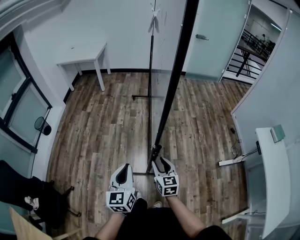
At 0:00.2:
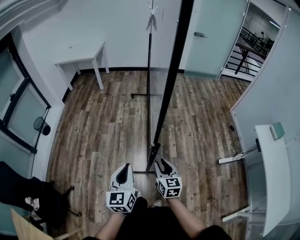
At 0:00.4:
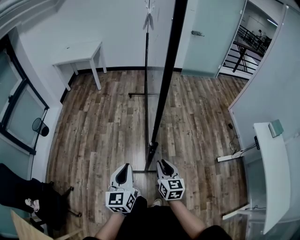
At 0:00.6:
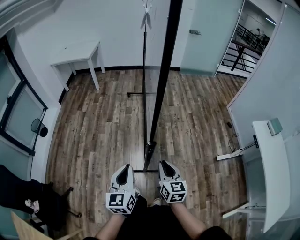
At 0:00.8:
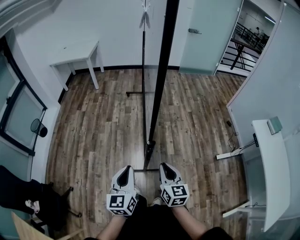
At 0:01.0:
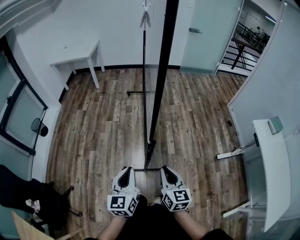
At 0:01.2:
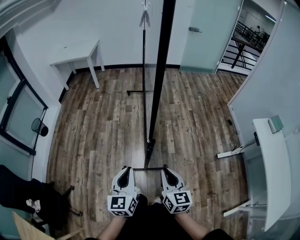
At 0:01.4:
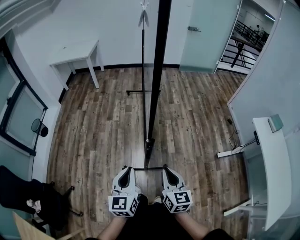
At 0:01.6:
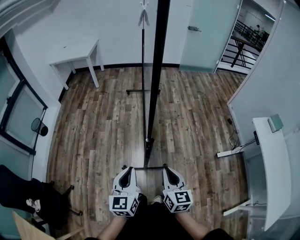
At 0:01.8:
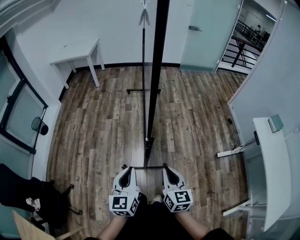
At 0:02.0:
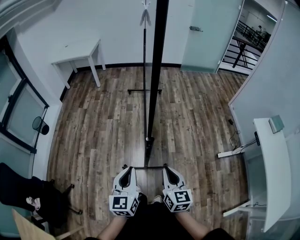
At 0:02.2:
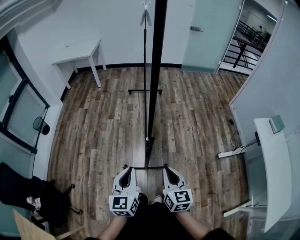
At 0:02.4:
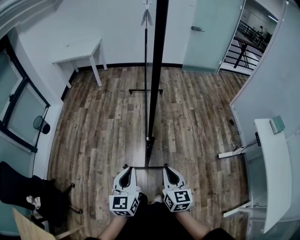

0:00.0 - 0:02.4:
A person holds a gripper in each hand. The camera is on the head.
0:00.0 - 0:01.2: The right gripper travels backward and upward by approximately 10 cm, and closes its fingers.
0:01.2 - 0:02.4: The grippers stay close to where they were, moving slightly.

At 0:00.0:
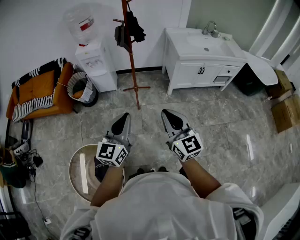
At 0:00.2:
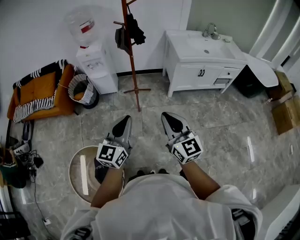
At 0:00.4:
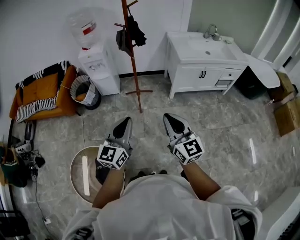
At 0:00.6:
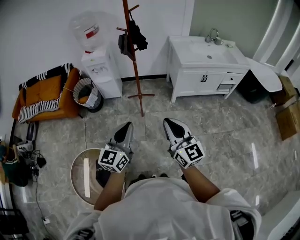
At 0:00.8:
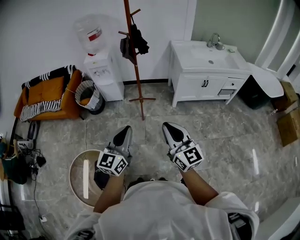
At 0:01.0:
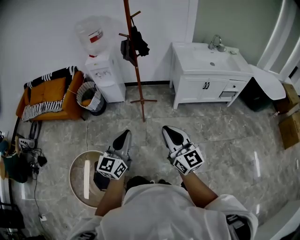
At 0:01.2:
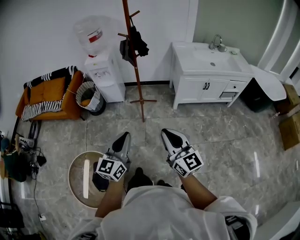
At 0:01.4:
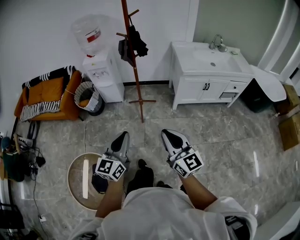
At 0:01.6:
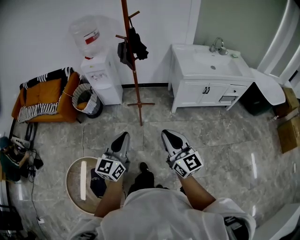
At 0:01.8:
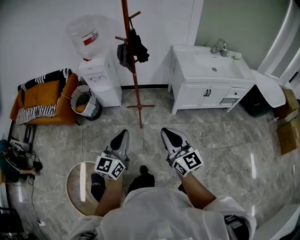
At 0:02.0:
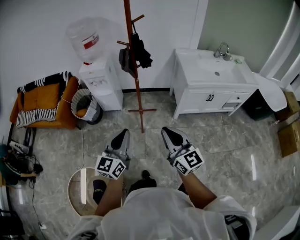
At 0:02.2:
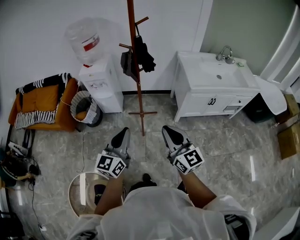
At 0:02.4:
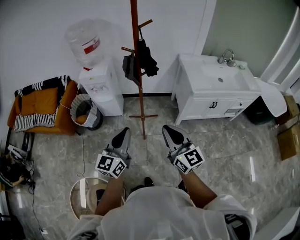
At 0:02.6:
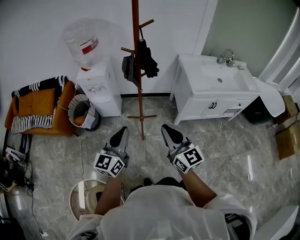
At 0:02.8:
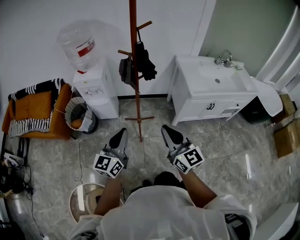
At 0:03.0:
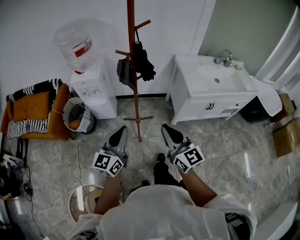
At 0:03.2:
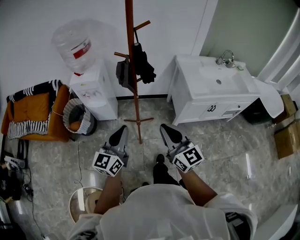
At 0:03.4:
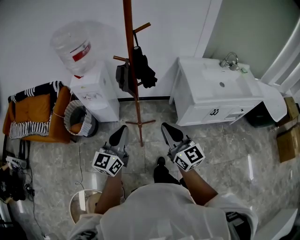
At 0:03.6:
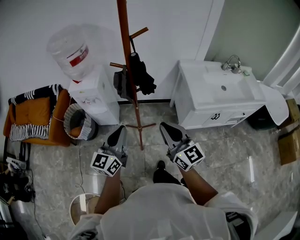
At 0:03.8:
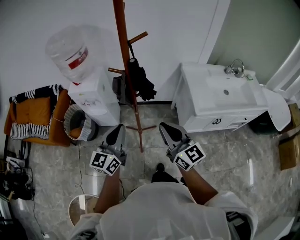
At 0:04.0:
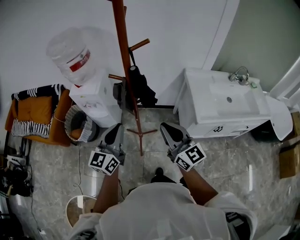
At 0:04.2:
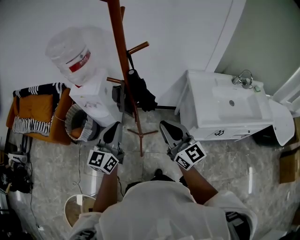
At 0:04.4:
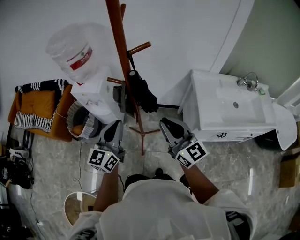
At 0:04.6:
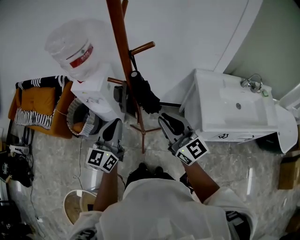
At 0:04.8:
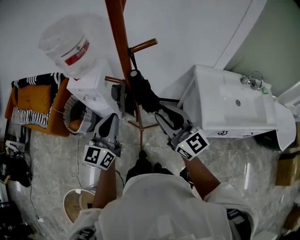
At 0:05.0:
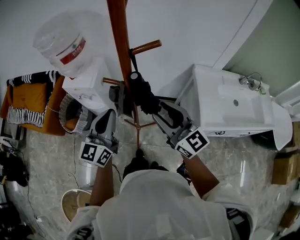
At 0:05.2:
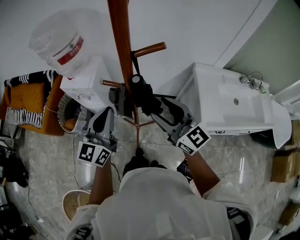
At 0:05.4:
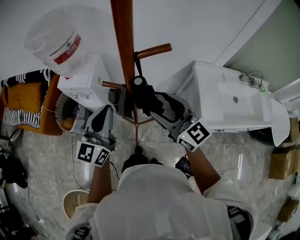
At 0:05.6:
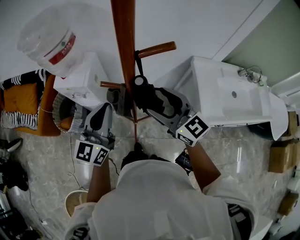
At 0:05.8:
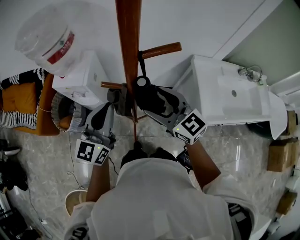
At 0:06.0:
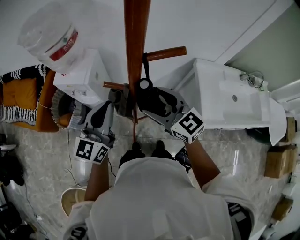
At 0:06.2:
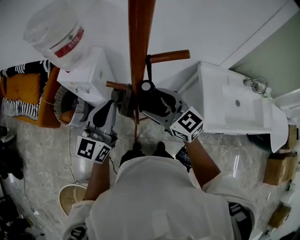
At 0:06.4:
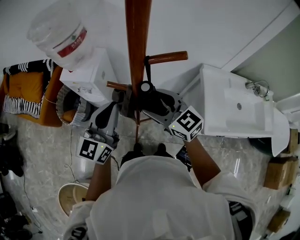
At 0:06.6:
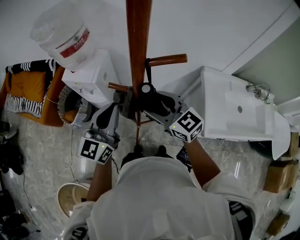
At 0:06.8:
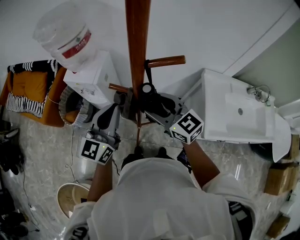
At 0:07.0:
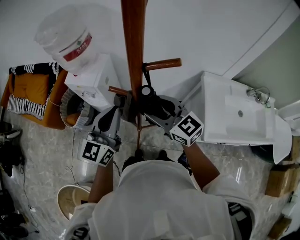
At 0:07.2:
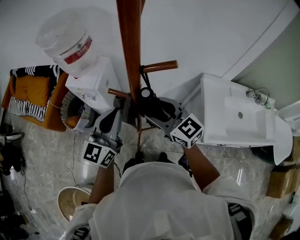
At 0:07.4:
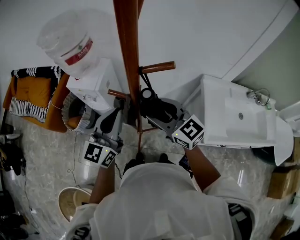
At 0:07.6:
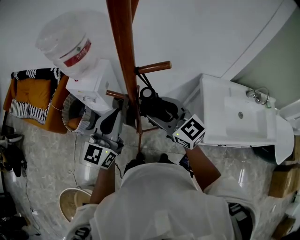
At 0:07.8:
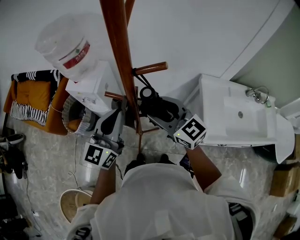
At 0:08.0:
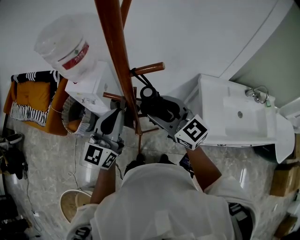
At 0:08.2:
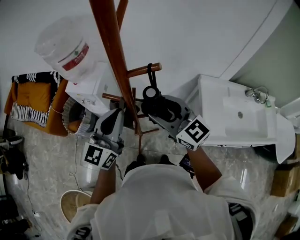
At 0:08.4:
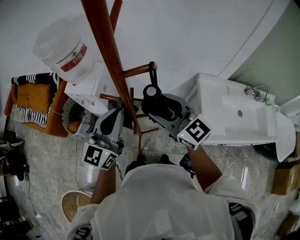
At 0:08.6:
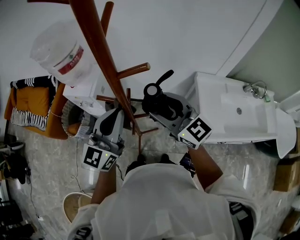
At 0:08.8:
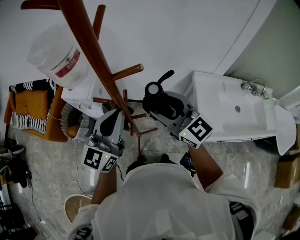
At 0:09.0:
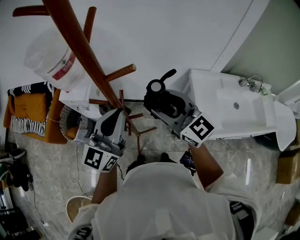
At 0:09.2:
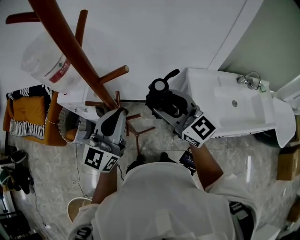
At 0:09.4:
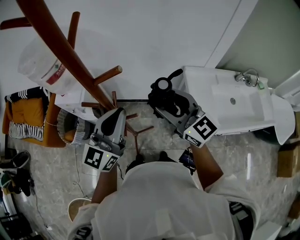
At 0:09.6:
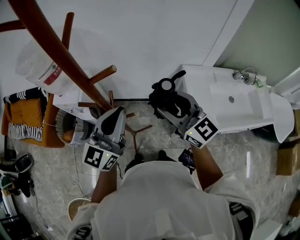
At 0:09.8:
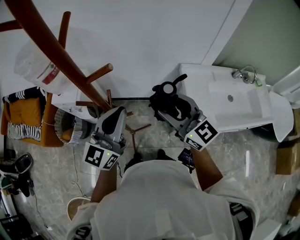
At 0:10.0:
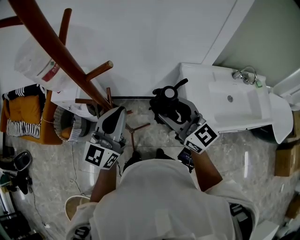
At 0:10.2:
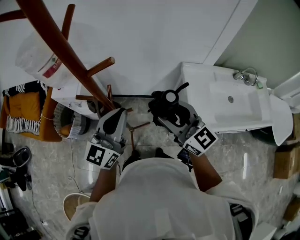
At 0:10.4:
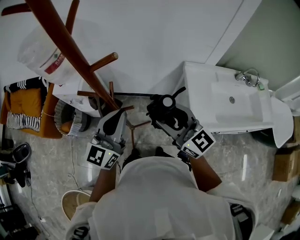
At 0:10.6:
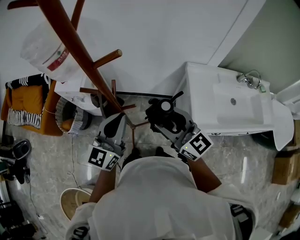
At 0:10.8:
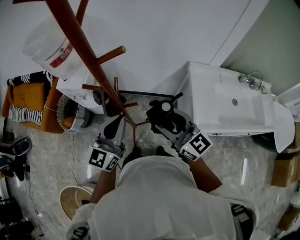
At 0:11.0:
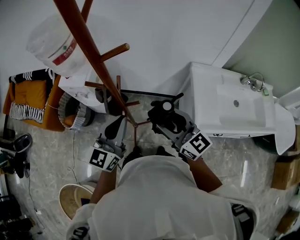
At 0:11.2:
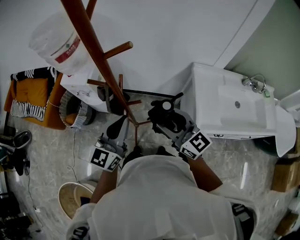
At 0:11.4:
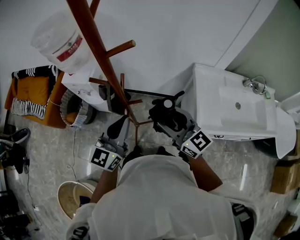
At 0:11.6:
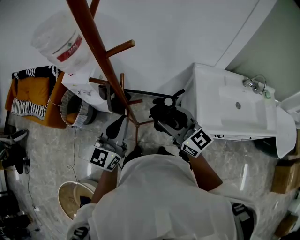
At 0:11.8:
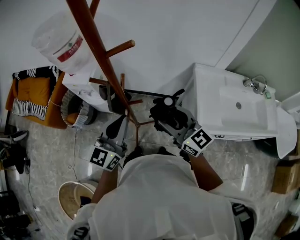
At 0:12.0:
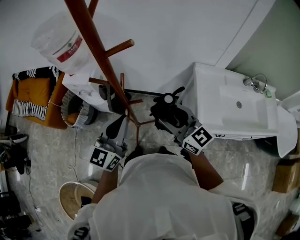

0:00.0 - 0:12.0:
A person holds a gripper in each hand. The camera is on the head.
0:00.0 - 0:01.6: The right gripper is displaced to the right by approximately 5 cm, while the left gripper moves roughly 5 cm.
0:01.6 - 0:03.0: Both grippers move forward, roughly 30 cm.
0:03.0 - 0:04.4: Both grippers move forward, about 25 cm.
0:04.4 - 0:06.0: The grippers both shift forward by about 15 cm. The right gripper turns by approximately 20 degrees, and opens up.
0:06.0 - 0:07.6: The left gripper ends up approximately 5 cm from where it was.
0:07.6 - 0:09.0: The right gripper moves to the right and upward, approximately 10 cm. Meanwhile the left gripper heads to the right, covering approximately 10 cm.
0:09.0 - 0:10.4: The left gripper heads downward, covering approximately 5 cm; the right gripper goes approximately 5 cm backward.
0:10.4 - 0:12.0: The left gripper shifts by approximately 5 cm.

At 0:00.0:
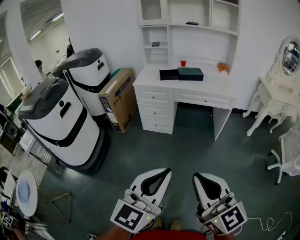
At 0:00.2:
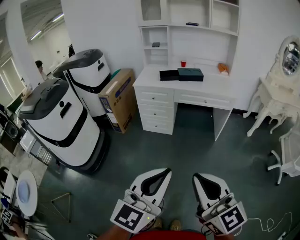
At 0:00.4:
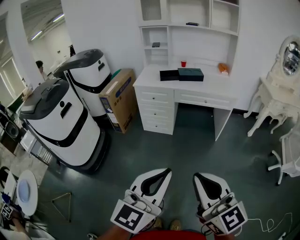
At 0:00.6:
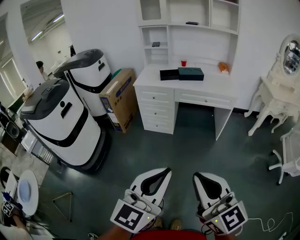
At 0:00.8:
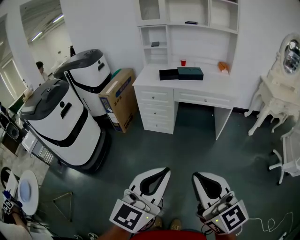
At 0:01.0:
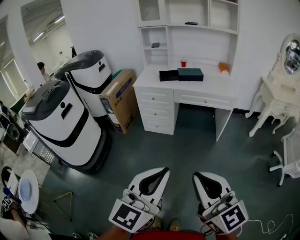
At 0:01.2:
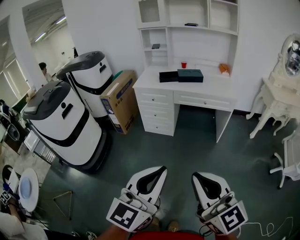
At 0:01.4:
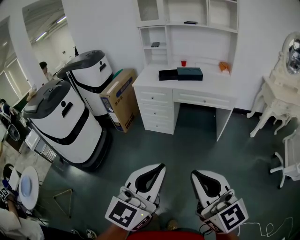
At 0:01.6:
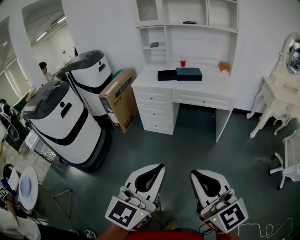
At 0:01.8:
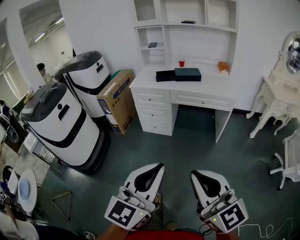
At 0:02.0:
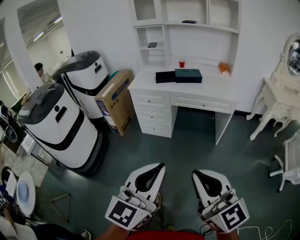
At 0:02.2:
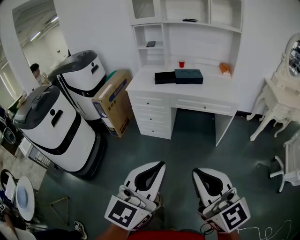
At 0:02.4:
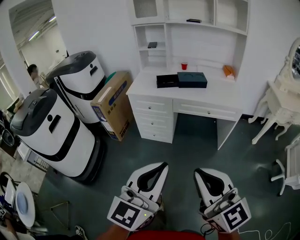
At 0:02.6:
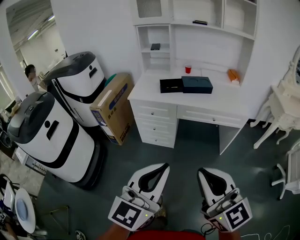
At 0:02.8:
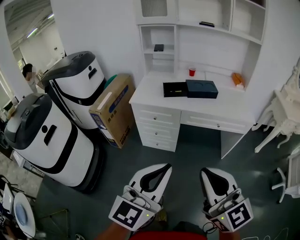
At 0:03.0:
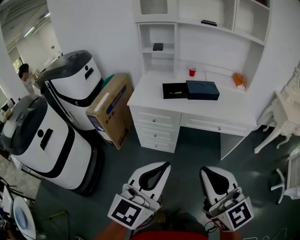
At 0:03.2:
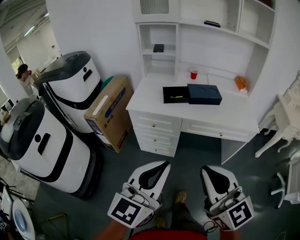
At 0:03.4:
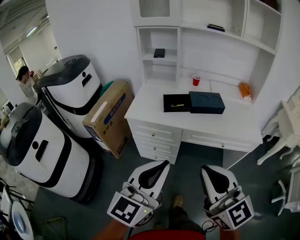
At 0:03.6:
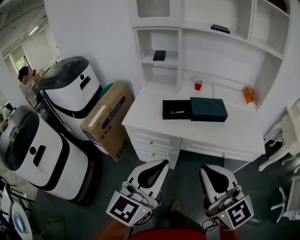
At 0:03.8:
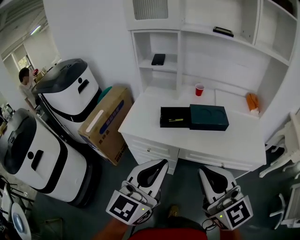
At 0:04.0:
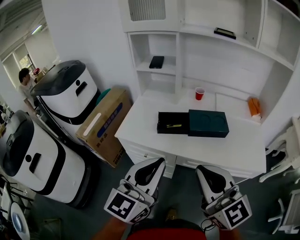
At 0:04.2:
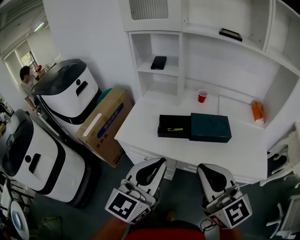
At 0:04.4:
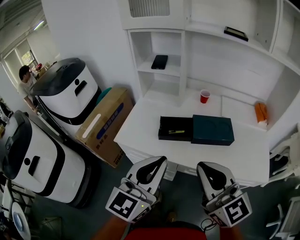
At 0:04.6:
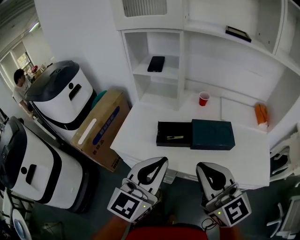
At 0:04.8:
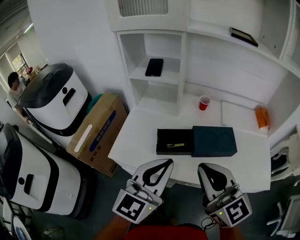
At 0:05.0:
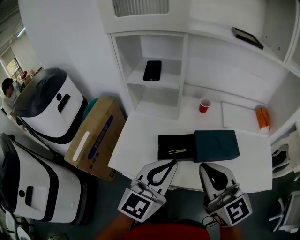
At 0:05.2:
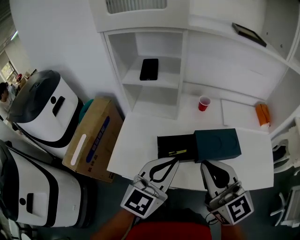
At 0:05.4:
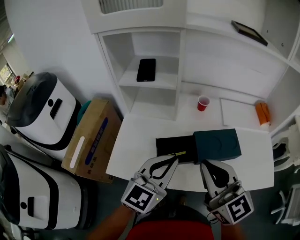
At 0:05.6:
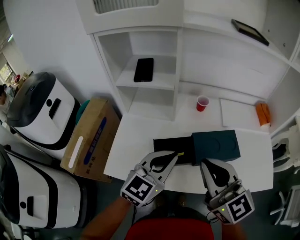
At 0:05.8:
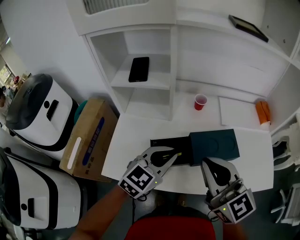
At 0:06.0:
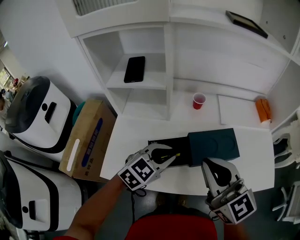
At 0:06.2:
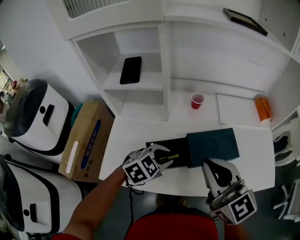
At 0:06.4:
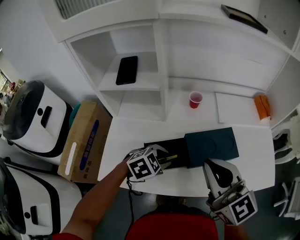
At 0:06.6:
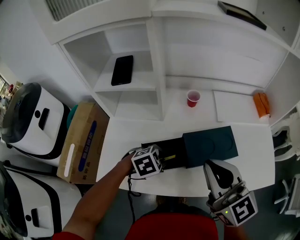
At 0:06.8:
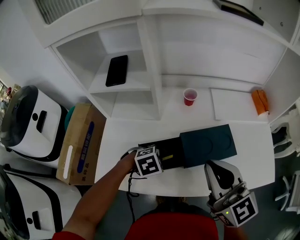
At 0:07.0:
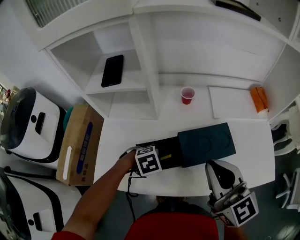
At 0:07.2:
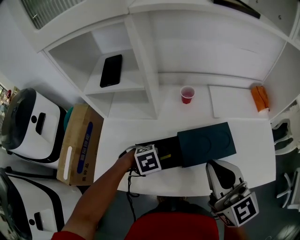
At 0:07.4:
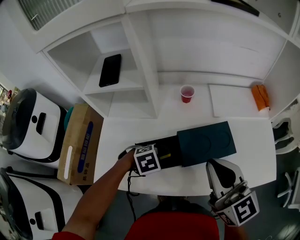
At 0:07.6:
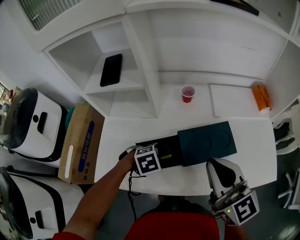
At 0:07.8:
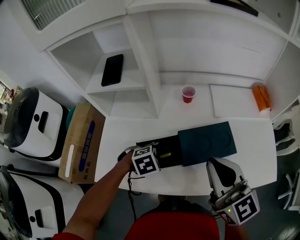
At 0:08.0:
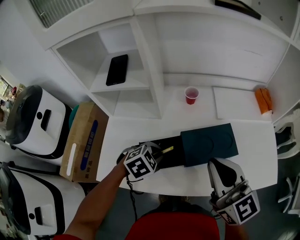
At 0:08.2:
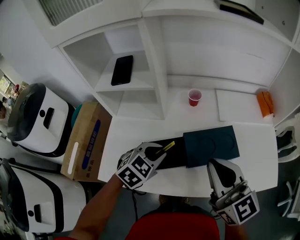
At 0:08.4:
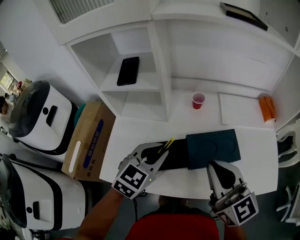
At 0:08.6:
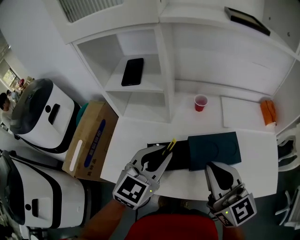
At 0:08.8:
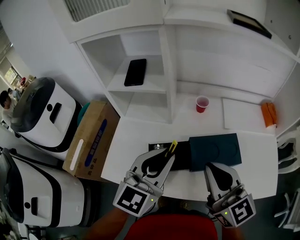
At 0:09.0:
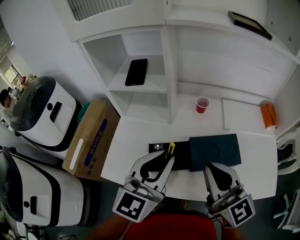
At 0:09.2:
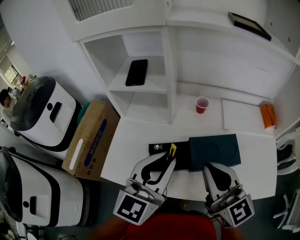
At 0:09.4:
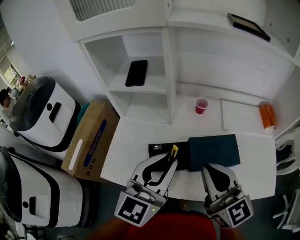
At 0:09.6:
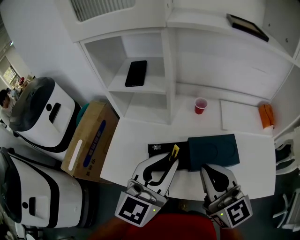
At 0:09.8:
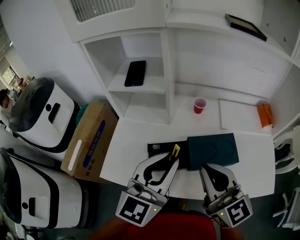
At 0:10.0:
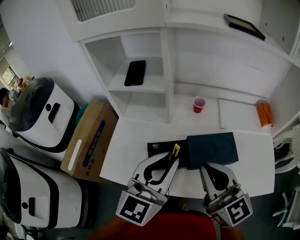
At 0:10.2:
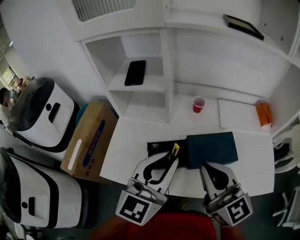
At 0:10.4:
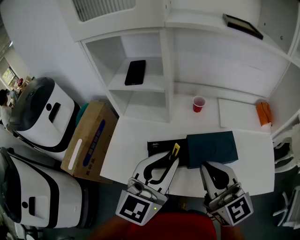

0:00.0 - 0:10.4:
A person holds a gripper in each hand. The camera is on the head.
0:00.0 - 0:01.4: The left gripper changes place by about 5 cm, while the right gripper heads to the right, covering approximately 5 cm.
0:01.4 - 0:03.0: Both grippers move forward, approximately 35 cm.
0:03.0 - 0:04.4: The two grippers go approximately 35 cm forward.
0:04.4 - 0:06.0: The left gripper heads forward and downward, covering about 30 cm, and angles its fingers downward, by about 40 degrees. Meanwhile the right gripper moves forward, roughly 20 cm.
0:06.0 - 0:07.4: The left gripper moves downward, about 15 cm, and tilts its fingers about 40 degrees downward, while the right gripper changes place by approximately 5 cm.
0:07.4 - 0:09.0: The left gripper moves upward, about 25 cm, and tips its fingers upward by roughly 70 degrees.
0:09.0 - 0:10.4: The grippers stay close to where they were, moving slightly.
